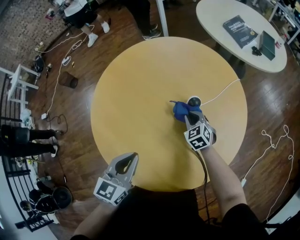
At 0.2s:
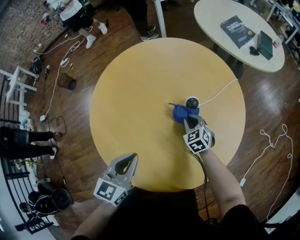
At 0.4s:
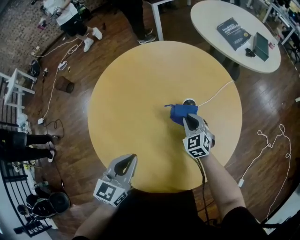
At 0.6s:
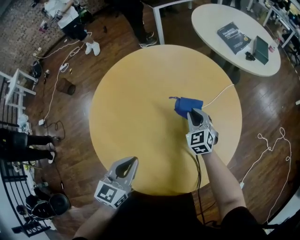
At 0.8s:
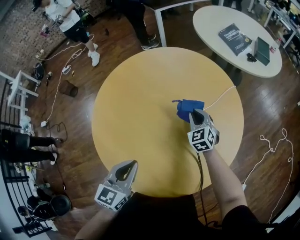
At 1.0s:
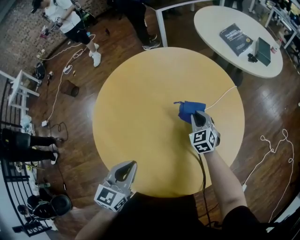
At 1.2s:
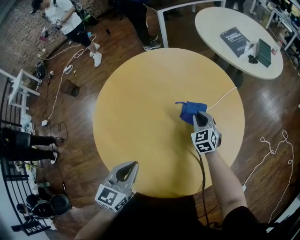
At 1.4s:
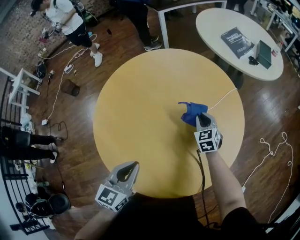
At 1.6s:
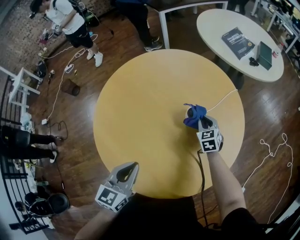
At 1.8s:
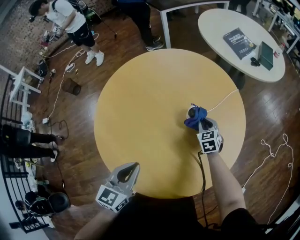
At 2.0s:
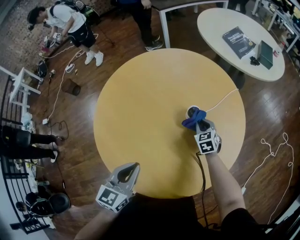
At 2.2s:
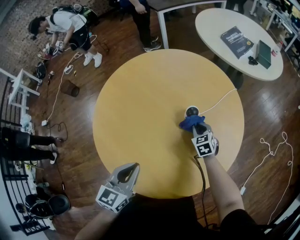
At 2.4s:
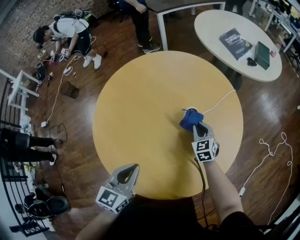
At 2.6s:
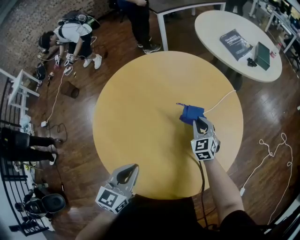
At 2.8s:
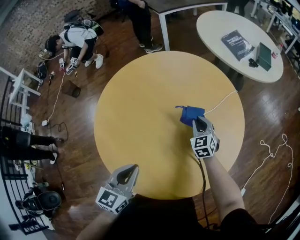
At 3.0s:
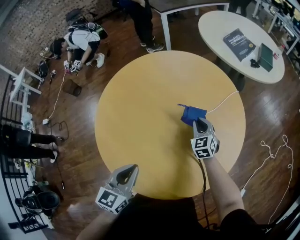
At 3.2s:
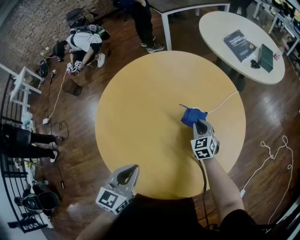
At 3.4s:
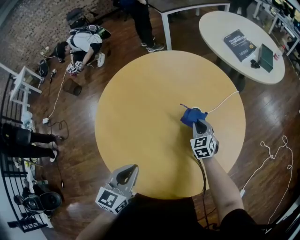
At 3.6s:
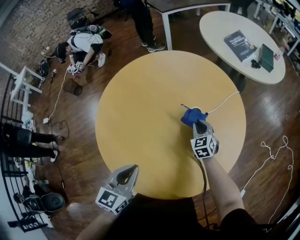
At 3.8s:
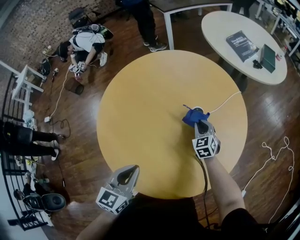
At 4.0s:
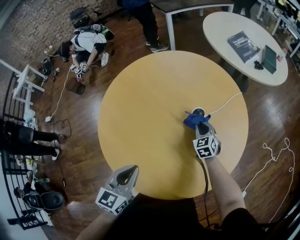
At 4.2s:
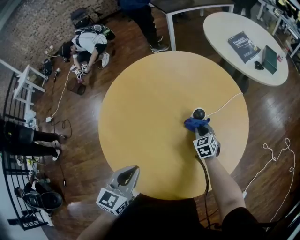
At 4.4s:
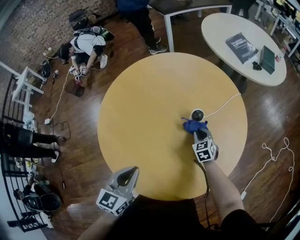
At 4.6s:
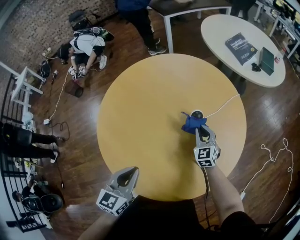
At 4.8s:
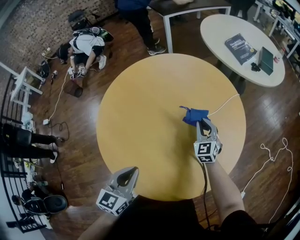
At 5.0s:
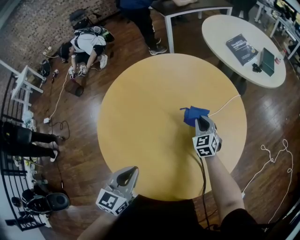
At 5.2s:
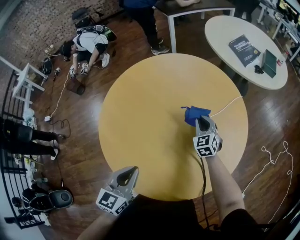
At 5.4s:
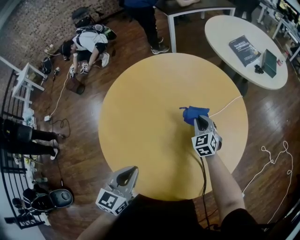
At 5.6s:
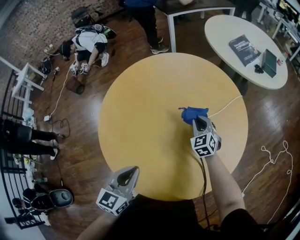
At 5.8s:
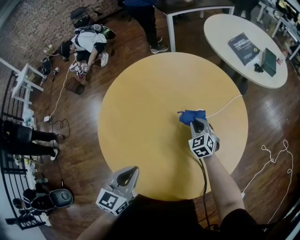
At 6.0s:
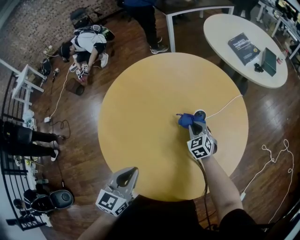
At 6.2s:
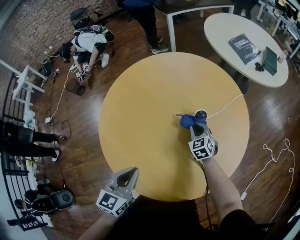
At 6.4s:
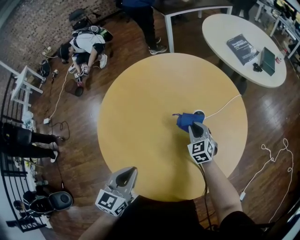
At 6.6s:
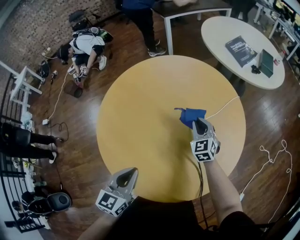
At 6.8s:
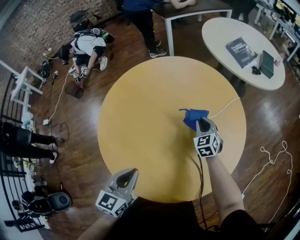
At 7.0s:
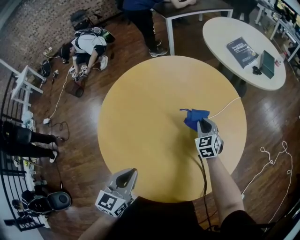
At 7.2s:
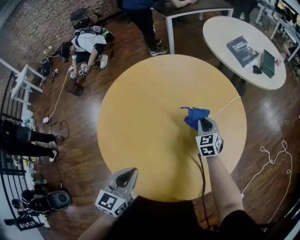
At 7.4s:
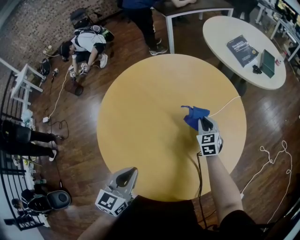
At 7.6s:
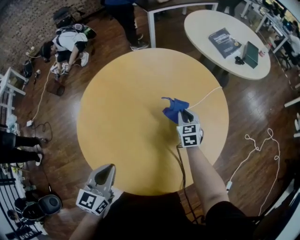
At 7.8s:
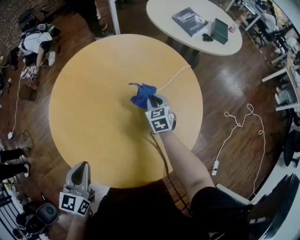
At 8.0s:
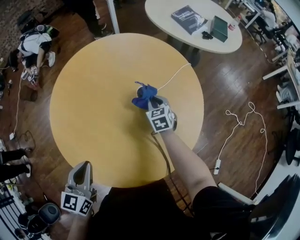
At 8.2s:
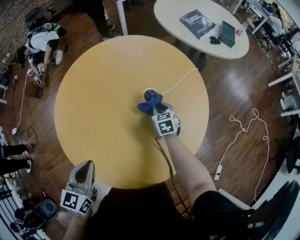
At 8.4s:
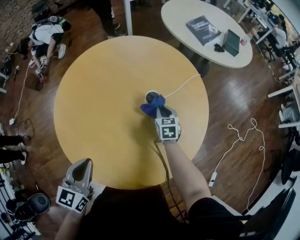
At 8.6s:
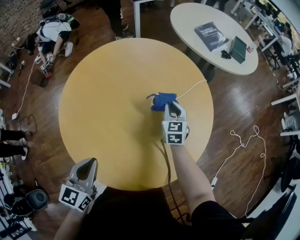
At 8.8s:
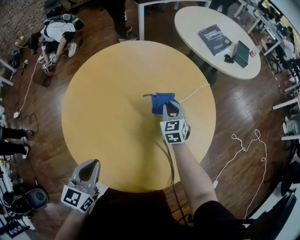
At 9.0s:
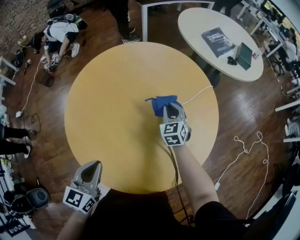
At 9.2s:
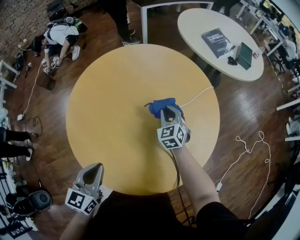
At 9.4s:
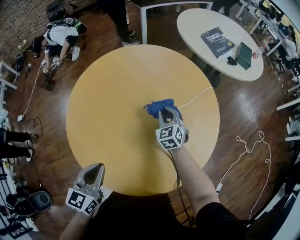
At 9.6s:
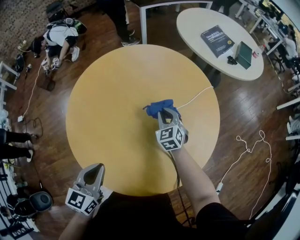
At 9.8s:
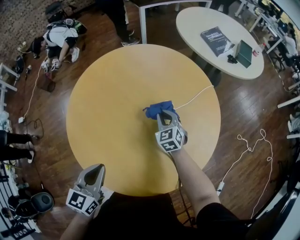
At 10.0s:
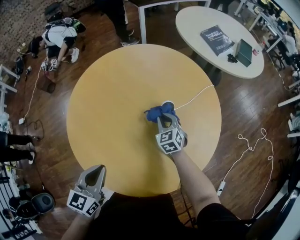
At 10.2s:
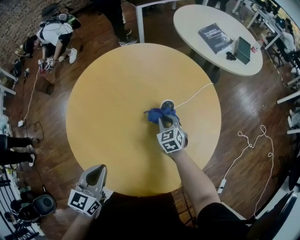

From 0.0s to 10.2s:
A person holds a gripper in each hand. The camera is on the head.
From 0.0s to 1.4s: The right gripper moves to the right, some 5 cm.
From 3.0s to 4.4s: The right gripper moves downward, roughly 5 cm.
From 4.4s to 5.8s: The right gripper heads upward, covering some 5 cm.
From 5.8s to 7.2s: The right gripper shifts by roughly 5 cm.
From 7.2s to 8.8s: The right gripper goes downward and returns, approximately 5 cm each way.
From 8.8s to 10.2s: The right gripper heads downward, covering some 5 cm.

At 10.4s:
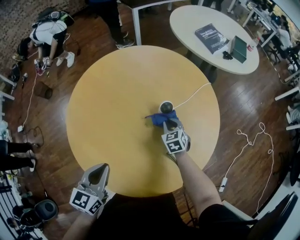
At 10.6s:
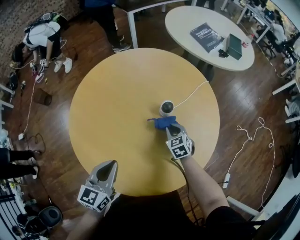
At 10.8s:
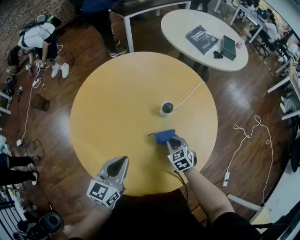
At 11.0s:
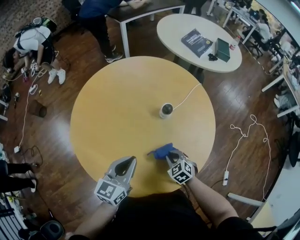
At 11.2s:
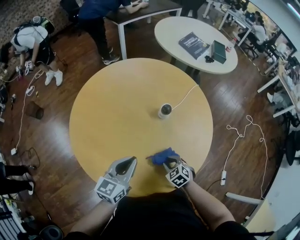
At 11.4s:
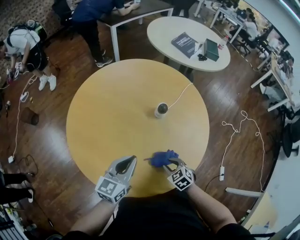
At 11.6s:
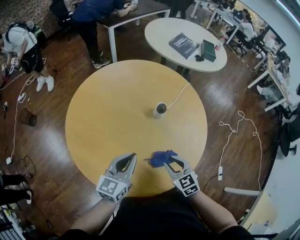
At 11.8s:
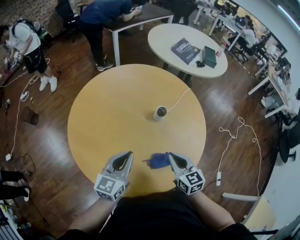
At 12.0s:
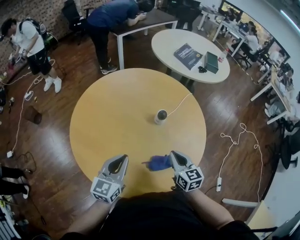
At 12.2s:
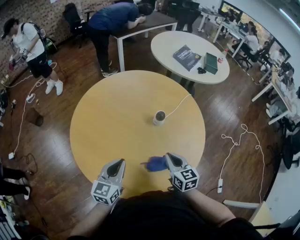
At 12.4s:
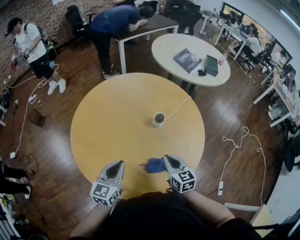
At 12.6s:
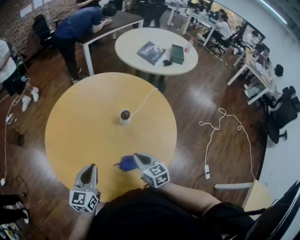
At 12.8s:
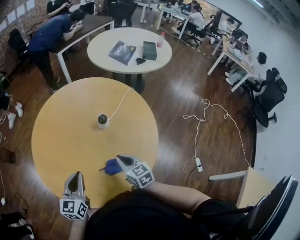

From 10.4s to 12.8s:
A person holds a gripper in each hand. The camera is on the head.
From 10.4s to 11.6s: The right gripper travels backward and upward by about 25 cm; the left gripper shifts some 5 cm to the right, and rotates roughly 20 degrees.
From 11.6s to 12.8s: The right gripper changes its angle by some 30 degrees, and closes.

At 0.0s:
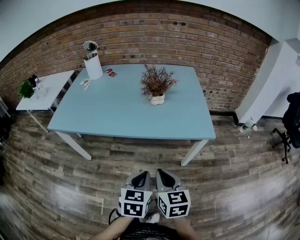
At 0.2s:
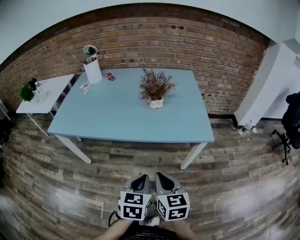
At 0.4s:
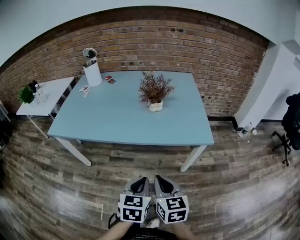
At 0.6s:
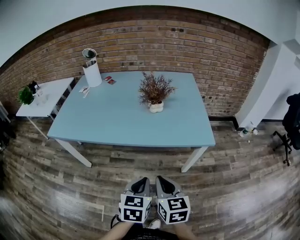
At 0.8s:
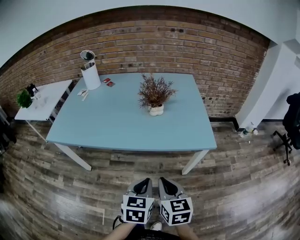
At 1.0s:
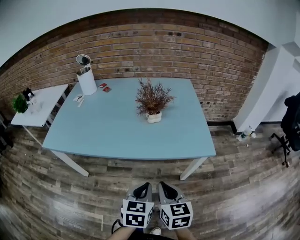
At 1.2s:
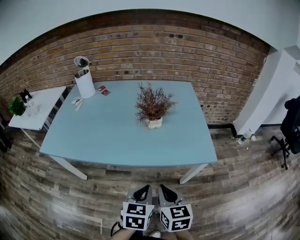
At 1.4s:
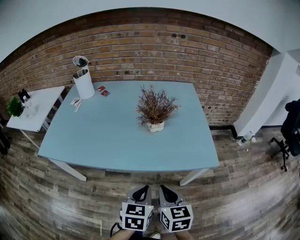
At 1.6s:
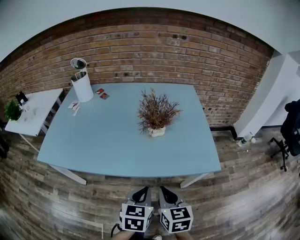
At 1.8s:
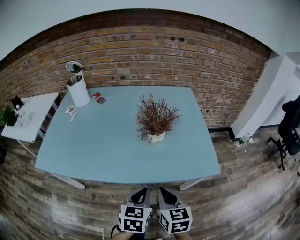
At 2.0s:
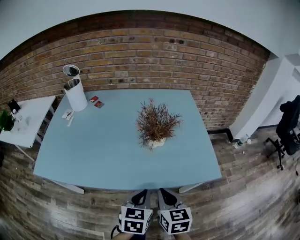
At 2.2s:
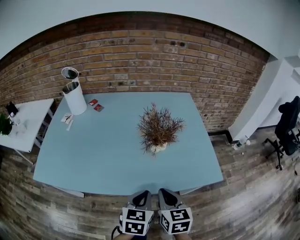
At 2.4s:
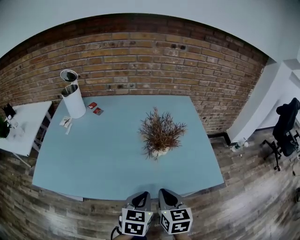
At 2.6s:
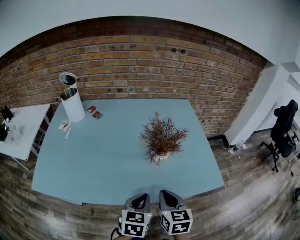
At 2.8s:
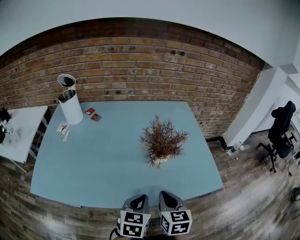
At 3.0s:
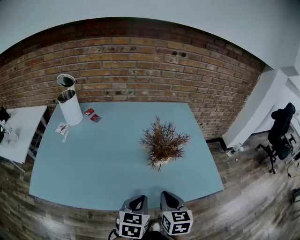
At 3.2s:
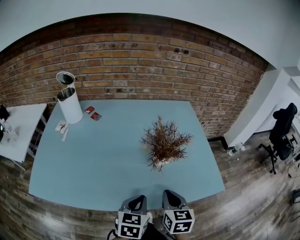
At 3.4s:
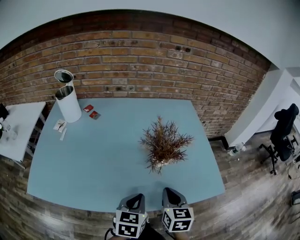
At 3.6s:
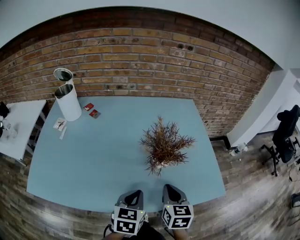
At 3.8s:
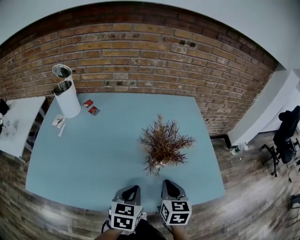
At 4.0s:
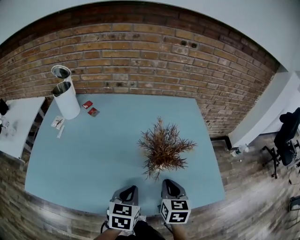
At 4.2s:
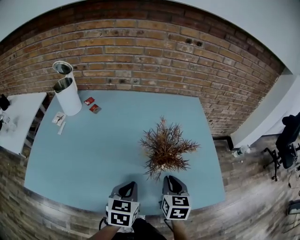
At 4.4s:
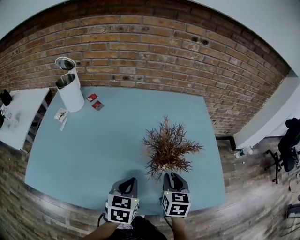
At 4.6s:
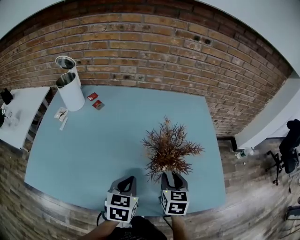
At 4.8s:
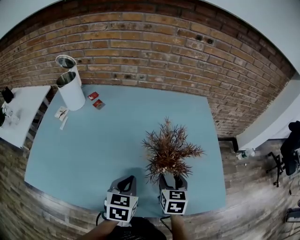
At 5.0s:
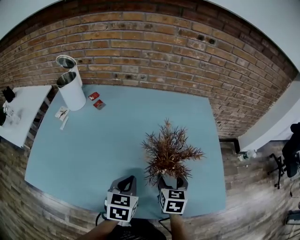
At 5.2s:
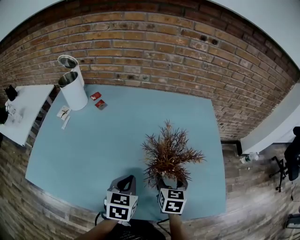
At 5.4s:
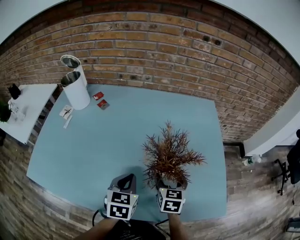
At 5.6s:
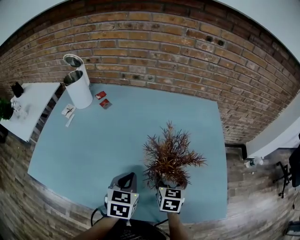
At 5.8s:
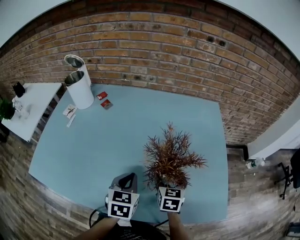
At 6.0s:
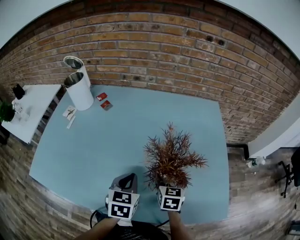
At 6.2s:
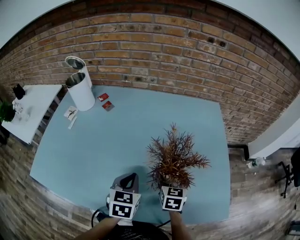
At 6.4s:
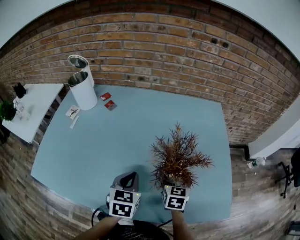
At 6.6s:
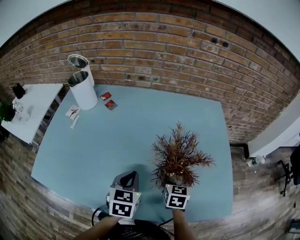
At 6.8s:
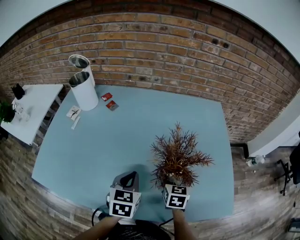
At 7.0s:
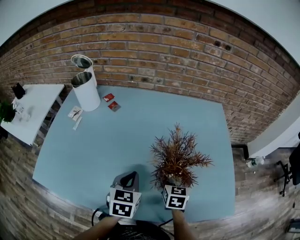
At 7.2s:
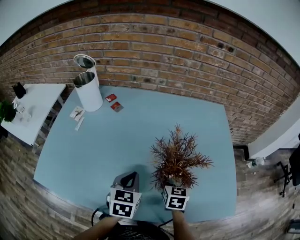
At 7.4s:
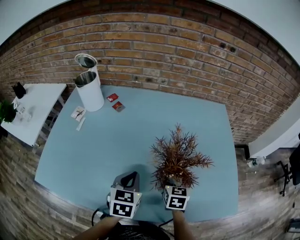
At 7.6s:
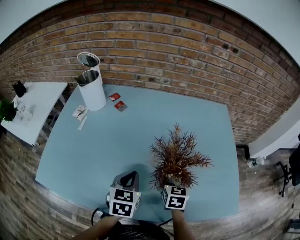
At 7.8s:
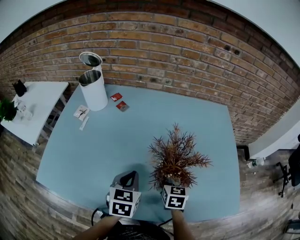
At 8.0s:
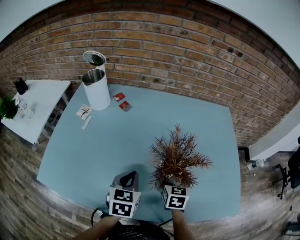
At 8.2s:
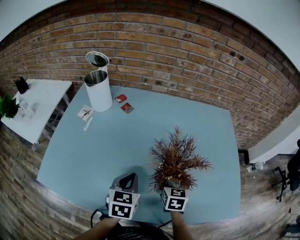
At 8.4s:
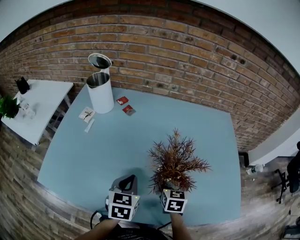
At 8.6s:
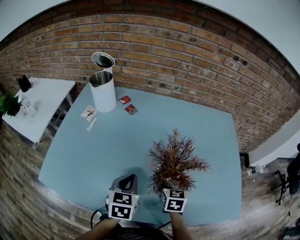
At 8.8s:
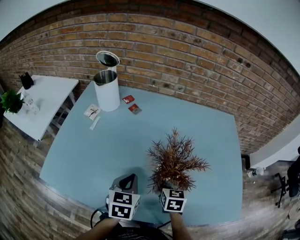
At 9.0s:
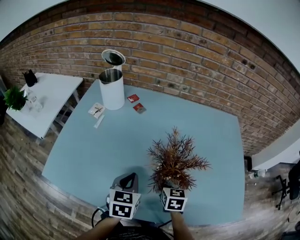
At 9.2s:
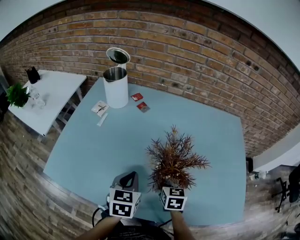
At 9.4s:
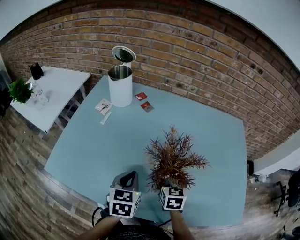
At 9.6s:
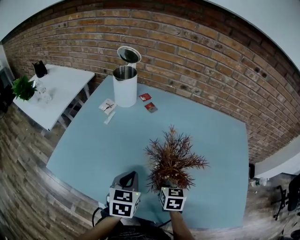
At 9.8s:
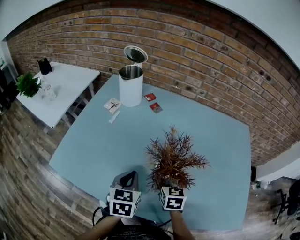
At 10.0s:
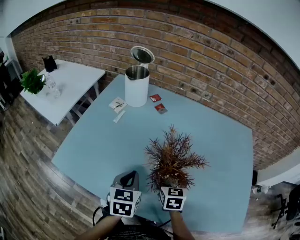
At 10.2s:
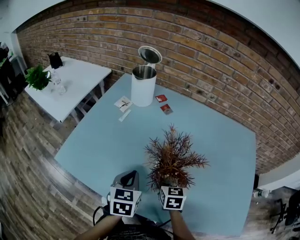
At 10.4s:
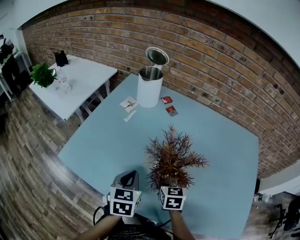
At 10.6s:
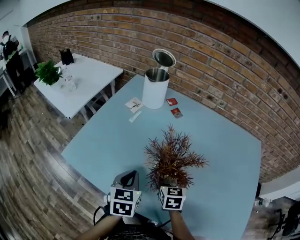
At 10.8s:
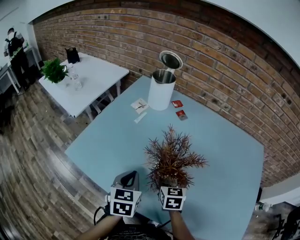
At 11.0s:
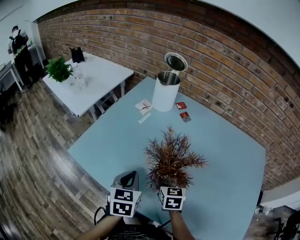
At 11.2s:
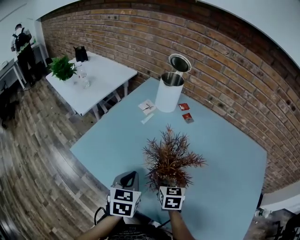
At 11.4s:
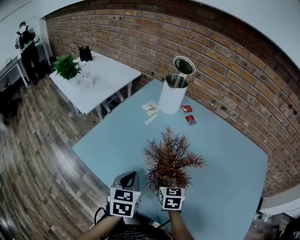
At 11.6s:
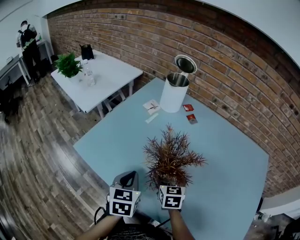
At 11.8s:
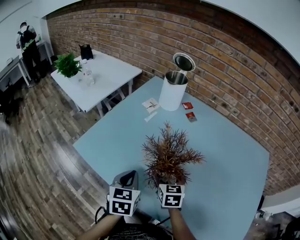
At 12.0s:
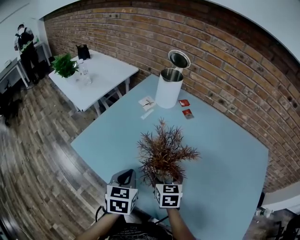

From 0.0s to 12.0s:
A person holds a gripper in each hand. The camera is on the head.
From 0.0s to 1.6s: The two grippers go roughly 15 cm forward.
From 1.6s to 3.0s: The grippers both shift forward and to the left by approximately 15 cm.
From 3.0s to 4.4s: The two grippers go roughly 15 cm forward.
From 4.4s to 6.0s: The right gripper heads forward and downward, covering about 10 cm, and opens up.
From 6.0s to 7.6s: The two grippers go roughly 10 cm to the left.
From 7.6s to 9.0s: Both grippers travel together to the left, about 10 cm.
From 9.0s to 10.4s: Both grippers travel together to the left, some 10 cm.
From 10.4s to 12.0s: Both grippers move to the left, approximately 5 cm.
